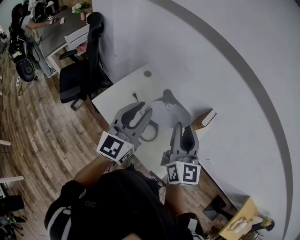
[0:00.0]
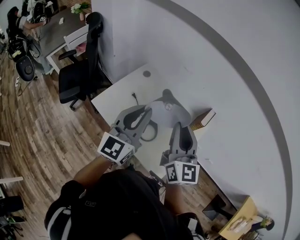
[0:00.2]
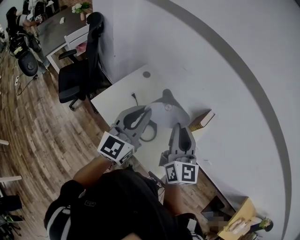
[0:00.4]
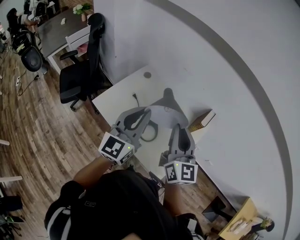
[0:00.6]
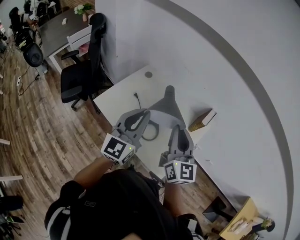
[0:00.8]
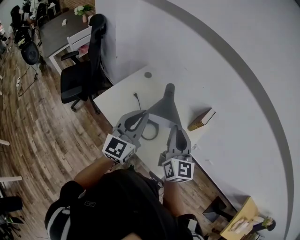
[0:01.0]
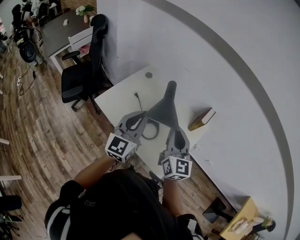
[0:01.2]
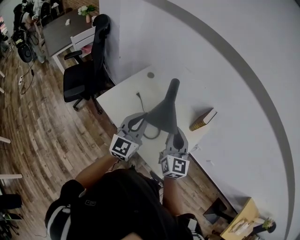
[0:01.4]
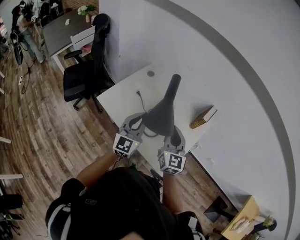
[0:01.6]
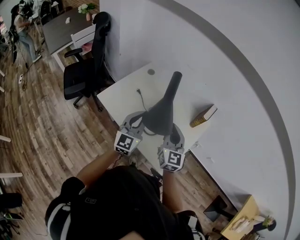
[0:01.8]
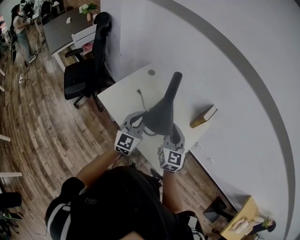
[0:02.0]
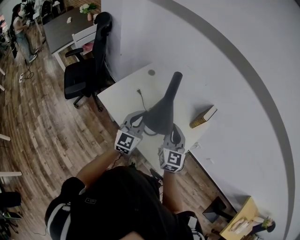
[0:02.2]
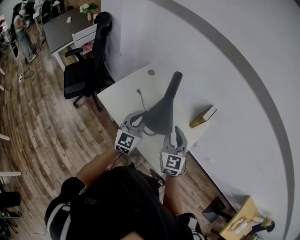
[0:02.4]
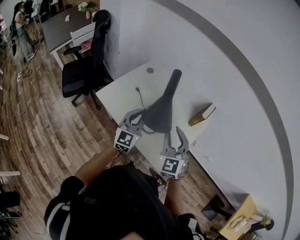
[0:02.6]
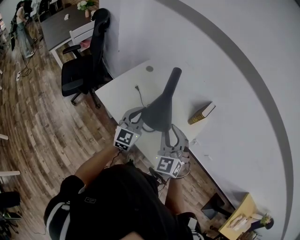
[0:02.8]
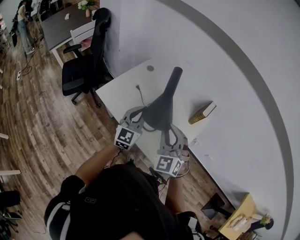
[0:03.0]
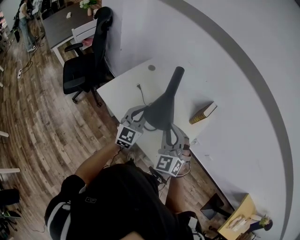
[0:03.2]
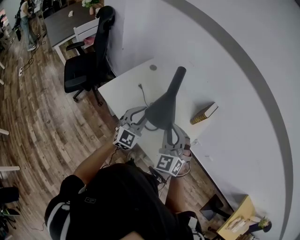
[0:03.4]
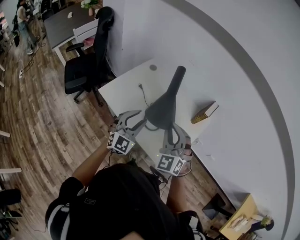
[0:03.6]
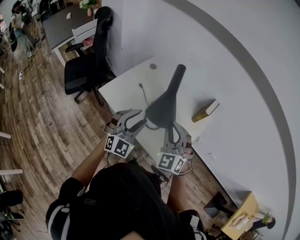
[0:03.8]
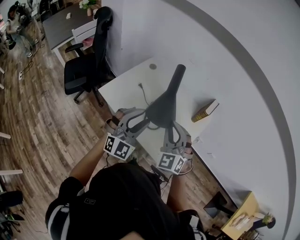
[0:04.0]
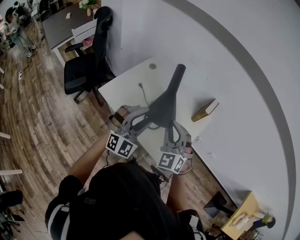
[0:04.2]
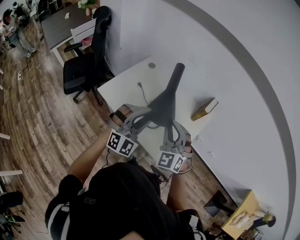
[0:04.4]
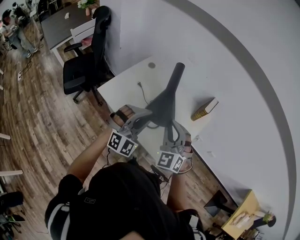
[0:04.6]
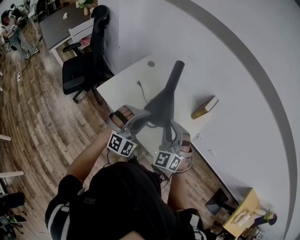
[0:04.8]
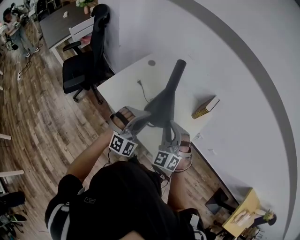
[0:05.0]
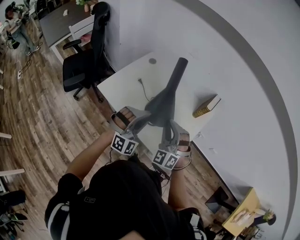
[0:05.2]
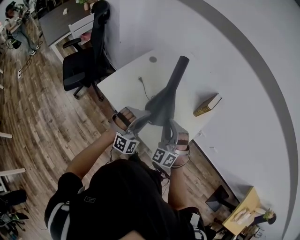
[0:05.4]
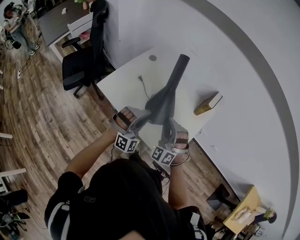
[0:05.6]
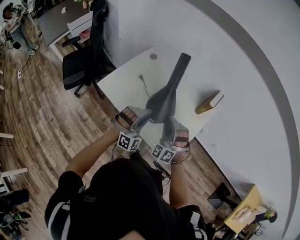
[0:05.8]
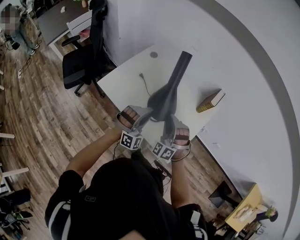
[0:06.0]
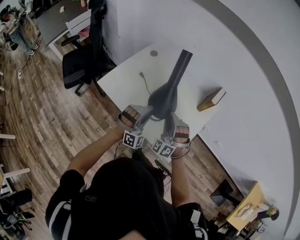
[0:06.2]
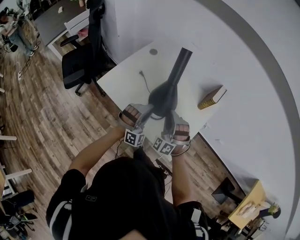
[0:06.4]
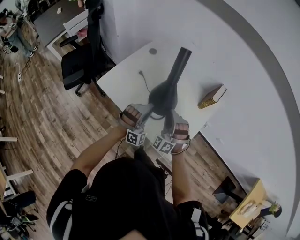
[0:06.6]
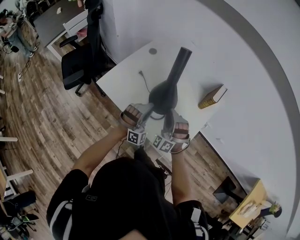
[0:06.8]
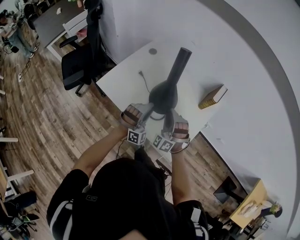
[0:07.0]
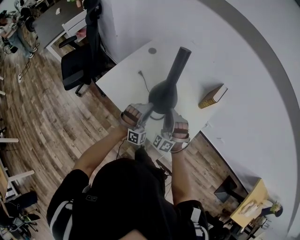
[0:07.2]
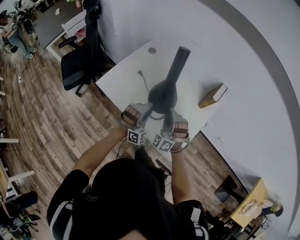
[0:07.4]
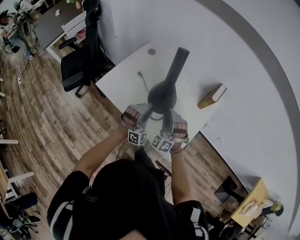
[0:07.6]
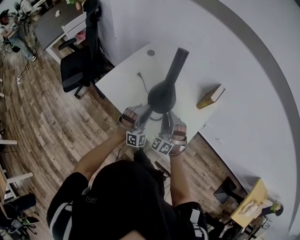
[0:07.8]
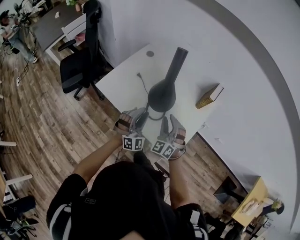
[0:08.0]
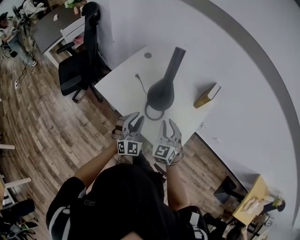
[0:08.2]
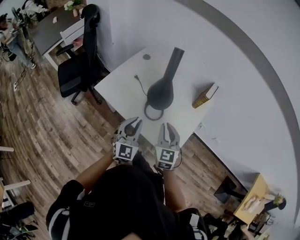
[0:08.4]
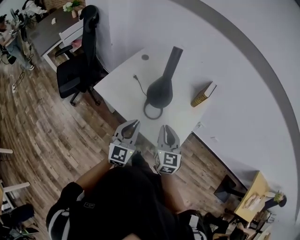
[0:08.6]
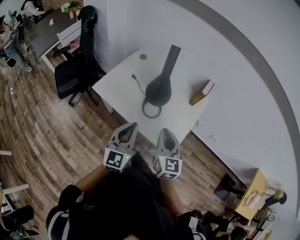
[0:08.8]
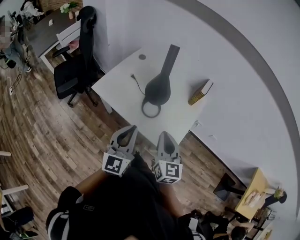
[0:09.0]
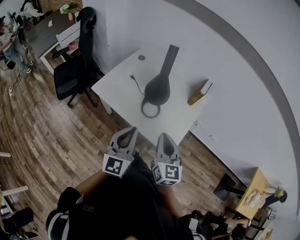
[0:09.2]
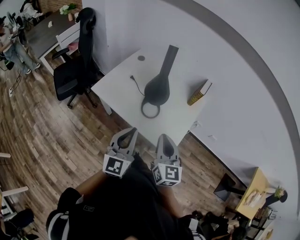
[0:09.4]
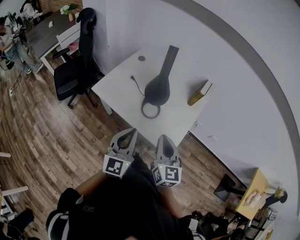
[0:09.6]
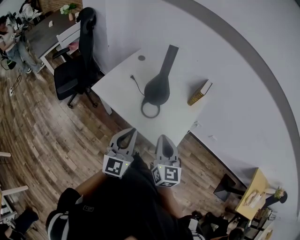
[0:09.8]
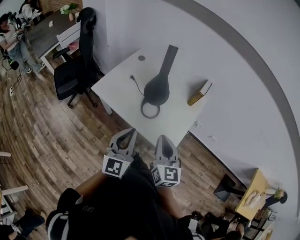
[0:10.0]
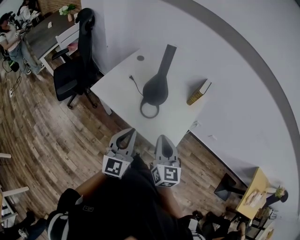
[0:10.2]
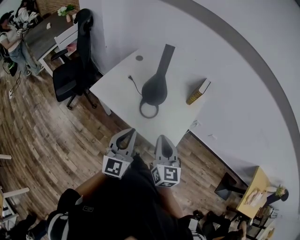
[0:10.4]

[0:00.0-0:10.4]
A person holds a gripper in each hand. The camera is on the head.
0:00.0 to 0:01.4: Both grippers travel together downward, roughly 10 cm. The right gripper closes up. Meanwhile the left gripper closes.
0:01.4 to 0:03.0: The right gripper ends up roughly 5 cm from where it was, and twists about 40 degrees counterclockwise, seen from behind. Meanwhile the left gripper is displaced downward by approximately 5 cm.
0:03.0 to 0:04.4: The left gripper travels backward by approximately 5 cm, twists roughly 50 degrees clockwise, seen from behind, and opens its fingers.
0:04.4 to 0:06.0: Both grippers move downward, approximately 15 cm. The right gripper turns by some 30 degrees.
0:06.0 to 0:07.4: The left gripper changes place by roughly 5 cm. Meanwhile the right gripper shifts by about 5 cm.
0:07.4 to 0:09.0: The two grippers go roughly 25 cm backward and upward. The left gripper rotates around the line of its fingers by approximately 80 degrees, counterclockwise from behind, and closes up. Meanwhile the right gripper rolls clockwise, seen from behind, by roughly 80 degrees, and closes its fingers.
0:09.0 to 0:10.4: The grippers stay close to where they were, moving slightly.

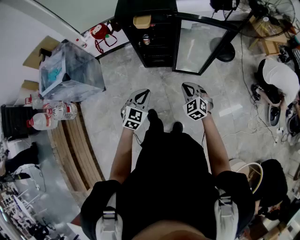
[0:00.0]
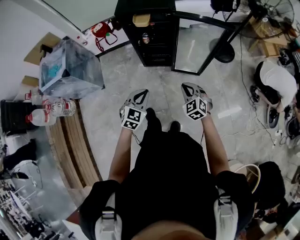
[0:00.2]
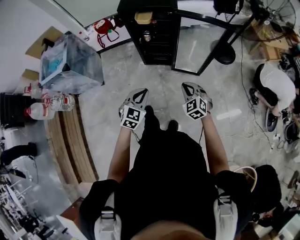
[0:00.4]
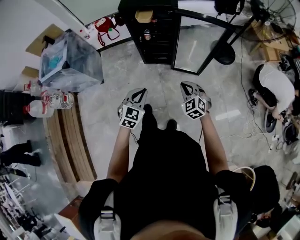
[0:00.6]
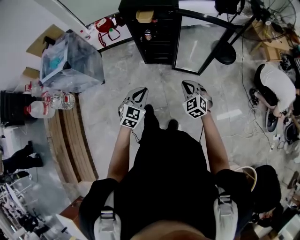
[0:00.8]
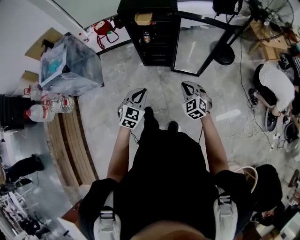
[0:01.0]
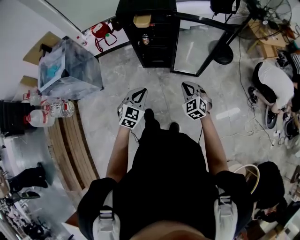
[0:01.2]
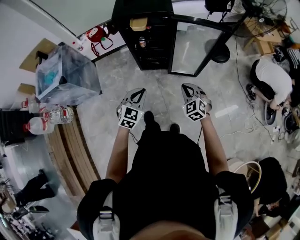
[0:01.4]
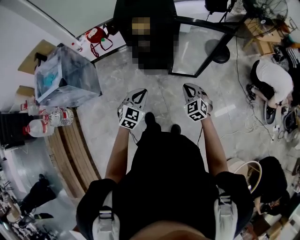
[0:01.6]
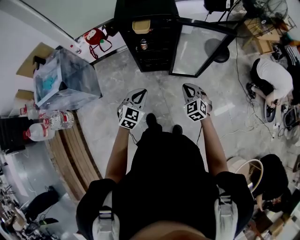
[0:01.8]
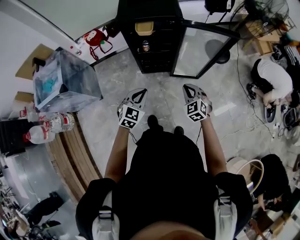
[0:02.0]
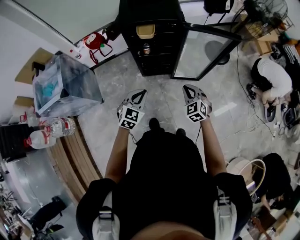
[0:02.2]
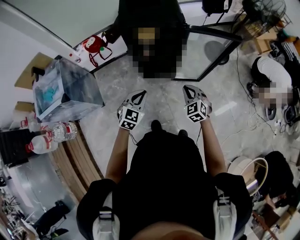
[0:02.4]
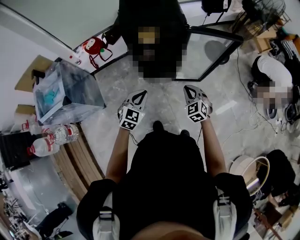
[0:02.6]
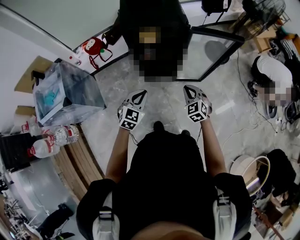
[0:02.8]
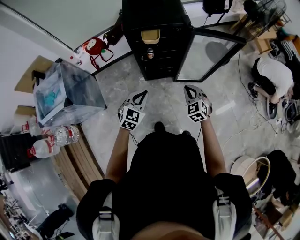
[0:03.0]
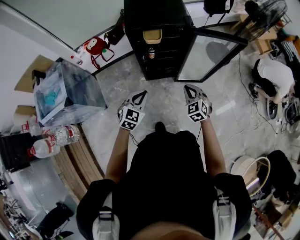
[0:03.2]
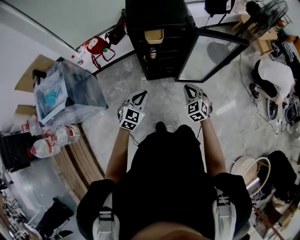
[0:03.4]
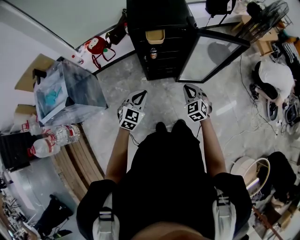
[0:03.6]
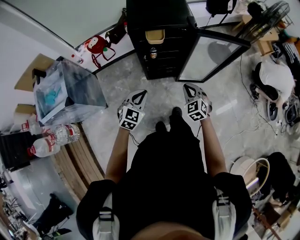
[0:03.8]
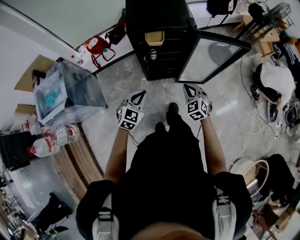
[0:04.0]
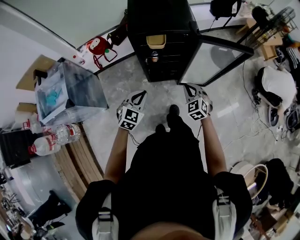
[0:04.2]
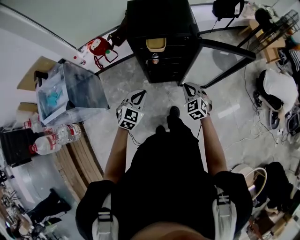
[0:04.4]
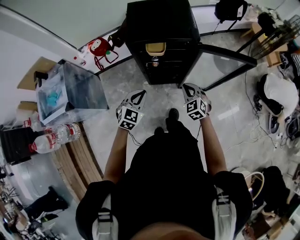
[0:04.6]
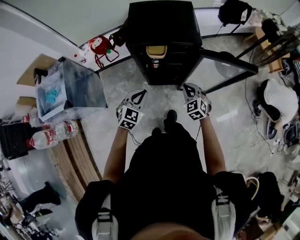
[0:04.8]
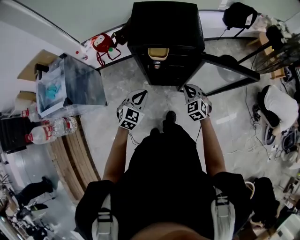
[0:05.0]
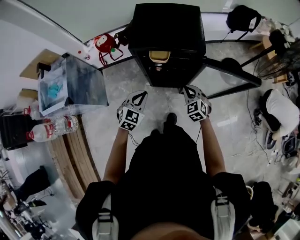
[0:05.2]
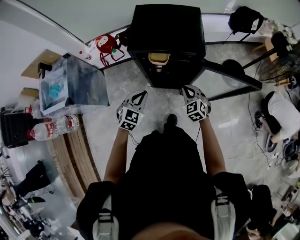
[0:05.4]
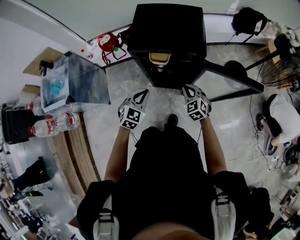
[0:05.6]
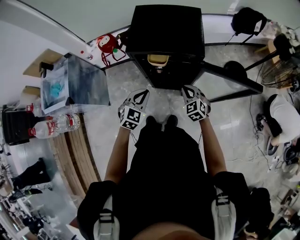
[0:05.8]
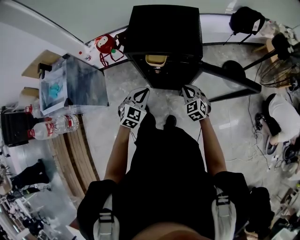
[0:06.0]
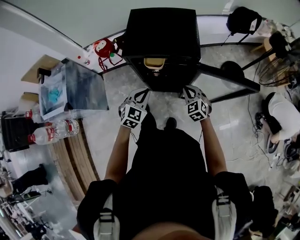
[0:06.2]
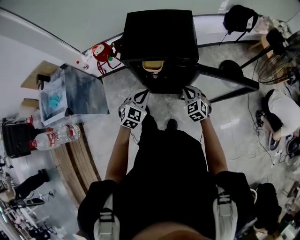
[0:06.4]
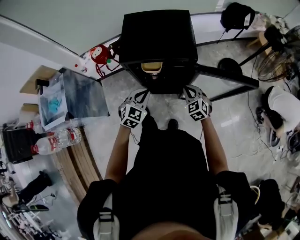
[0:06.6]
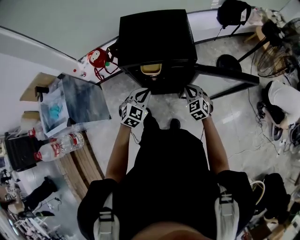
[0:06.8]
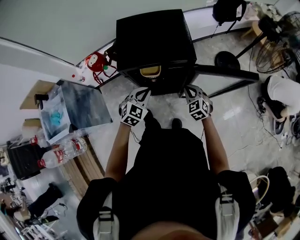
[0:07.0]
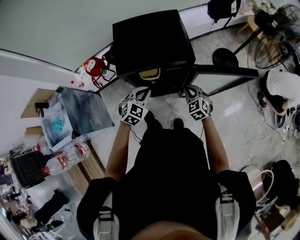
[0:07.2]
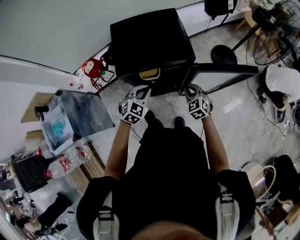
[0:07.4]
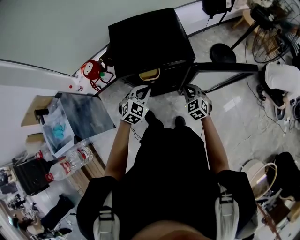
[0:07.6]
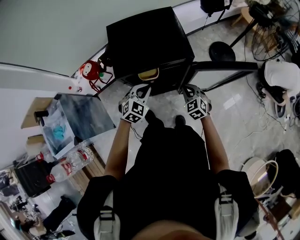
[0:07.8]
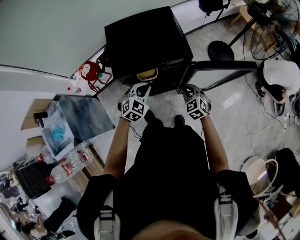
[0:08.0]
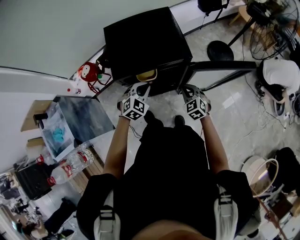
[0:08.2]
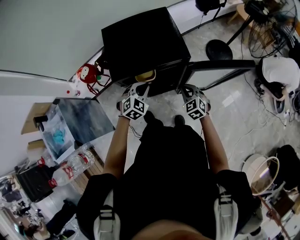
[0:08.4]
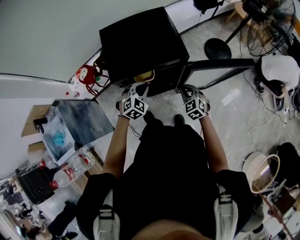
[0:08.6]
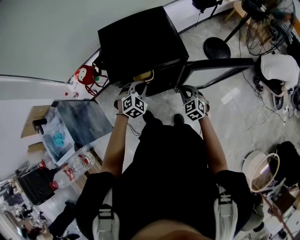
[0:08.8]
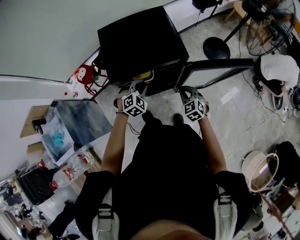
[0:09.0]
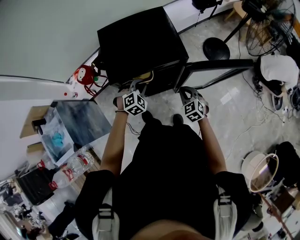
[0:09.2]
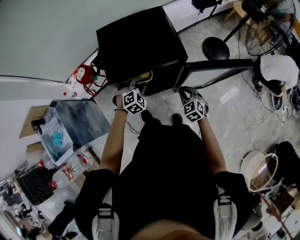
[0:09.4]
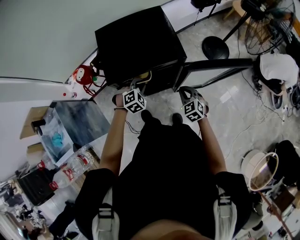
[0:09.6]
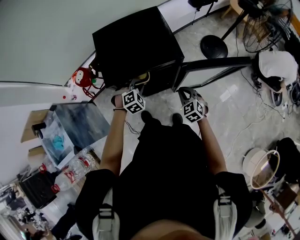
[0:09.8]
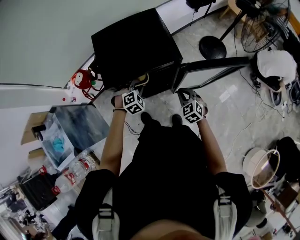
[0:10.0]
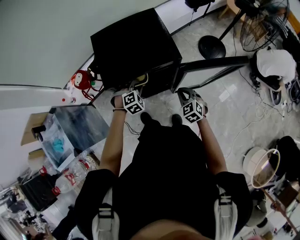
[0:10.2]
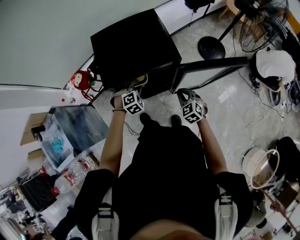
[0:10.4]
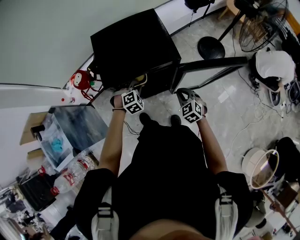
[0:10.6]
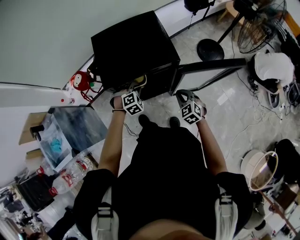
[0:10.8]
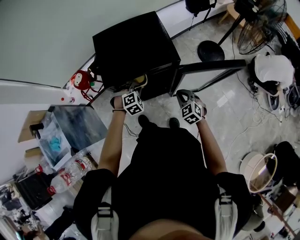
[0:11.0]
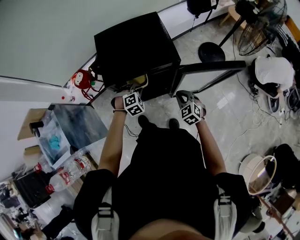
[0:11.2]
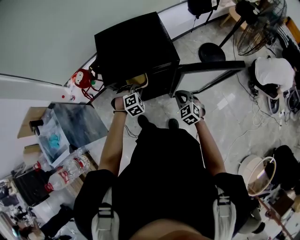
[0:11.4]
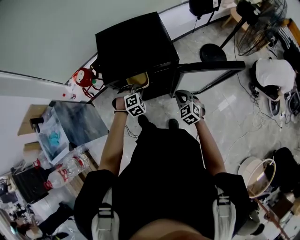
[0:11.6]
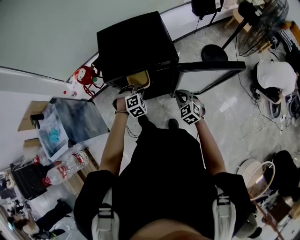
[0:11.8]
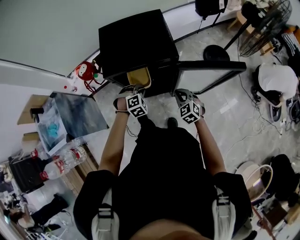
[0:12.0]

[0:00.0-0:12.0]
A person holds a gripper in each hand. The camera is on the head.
0:00.0 to 0:01.6: The left gripper moves some 5 cm backward and comes back.
0:01.6 to 0:03.0: Both grippers travel together to the left and forward, some 15 cm.
0:03.0 to 0:04.4: The grippers both shift forward by approximately 10 cm.
0:04.4 to 0:06.0: The right gripper goes approximately 15 cm forward; the left gripper goes approximately 15 cm forward and to the right.
0:06.0 to 0:07.6: The left gripper moves forward, roughly 10 cm, and turns by roughly 20 degrees.
0:07.6 to 0:09.0: The left gripper shifts by approximately 5 cm, and rotates about 20 degrees.
0:09.0 to 0:10.4: There are only small adjustments of the grippers.
0:10.4 to 0:12.0: The left gripper moves backward, approximately 5 cm.

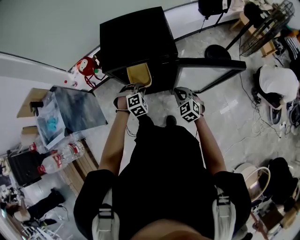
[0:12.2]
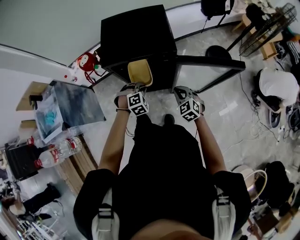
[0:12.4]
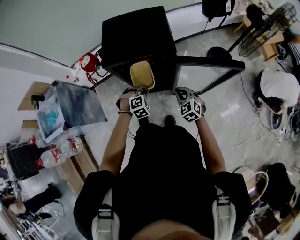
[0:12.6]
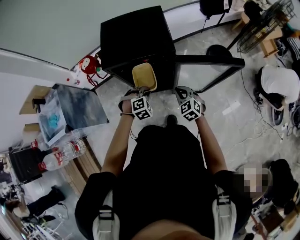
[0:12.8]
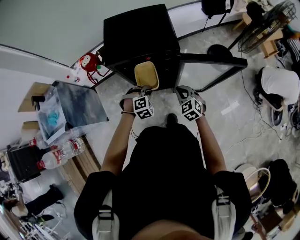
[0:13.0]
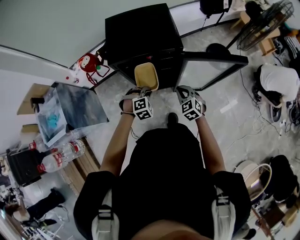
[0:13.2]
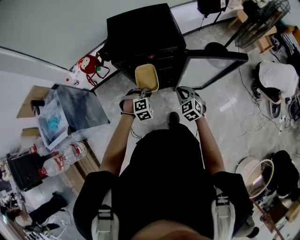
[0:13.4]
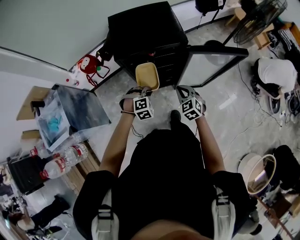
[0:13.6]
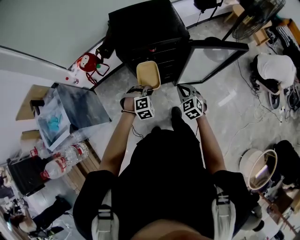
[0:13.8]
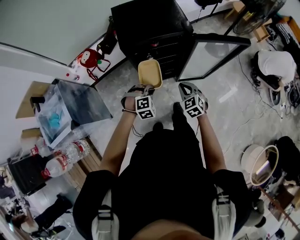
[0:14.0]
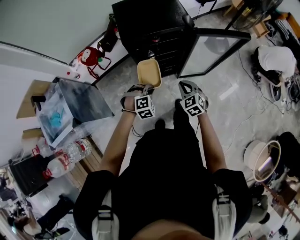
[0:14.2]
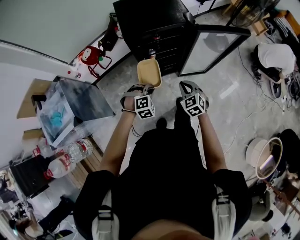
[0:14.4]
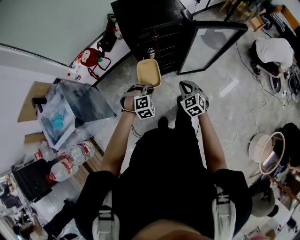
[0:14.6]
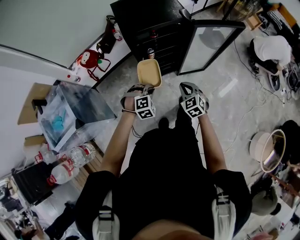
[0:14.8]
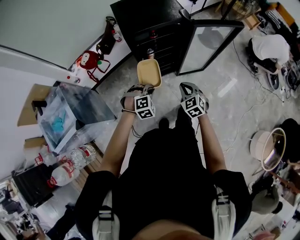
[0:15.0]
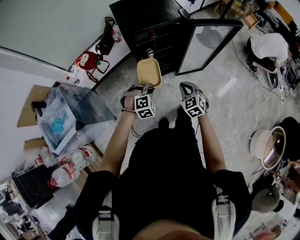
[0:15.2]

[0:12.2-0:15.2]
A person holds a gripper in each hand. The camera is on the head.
0:12.2 to 0:13.8: The right gripper heads to the left and backward, covering roughly 10 cm; the left gripper heads backward and to the left, covering approximately 15 cm.
0:13.8 to 0:15.2: Both grippers move backward and to the left, roughly 15 cm.
